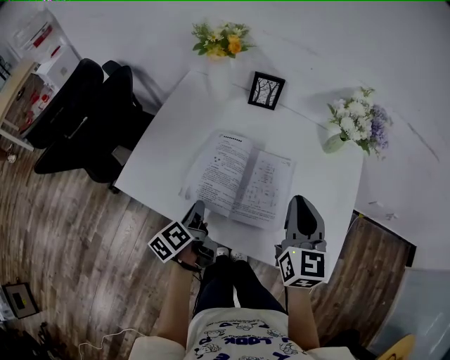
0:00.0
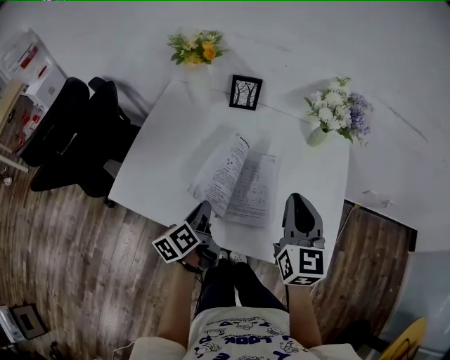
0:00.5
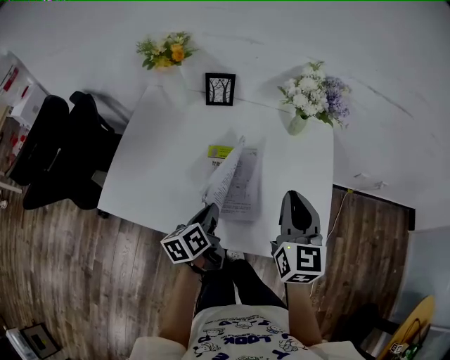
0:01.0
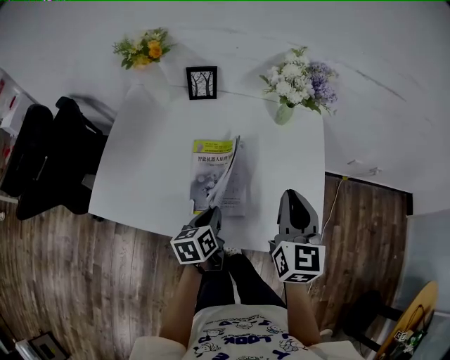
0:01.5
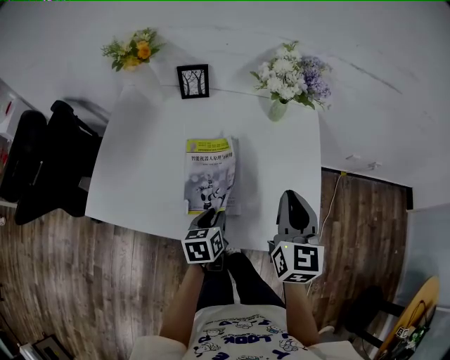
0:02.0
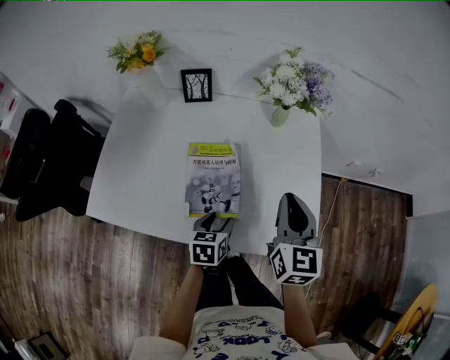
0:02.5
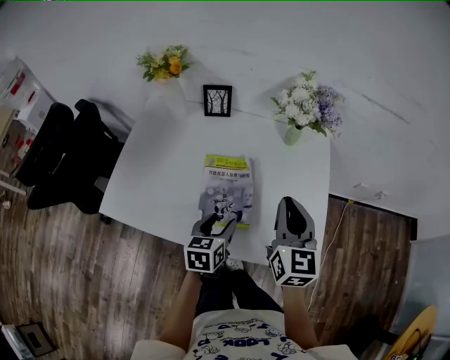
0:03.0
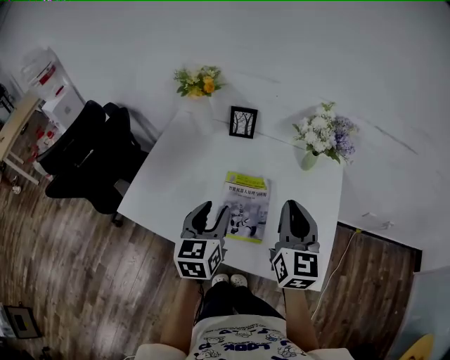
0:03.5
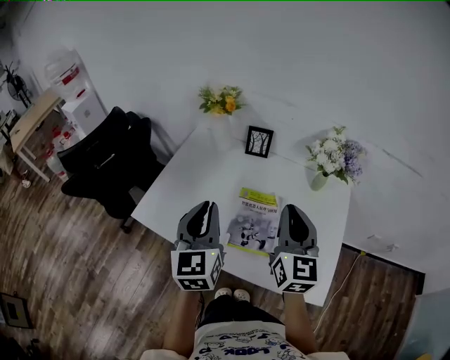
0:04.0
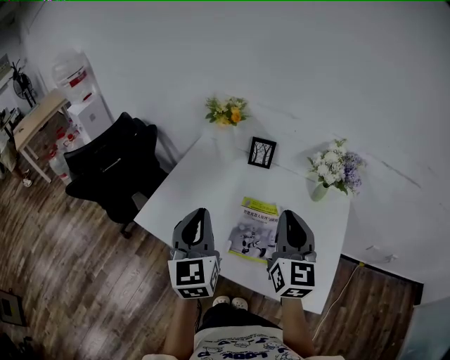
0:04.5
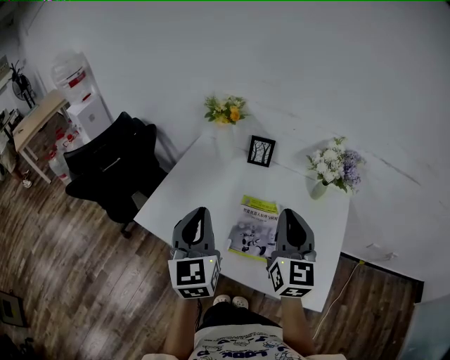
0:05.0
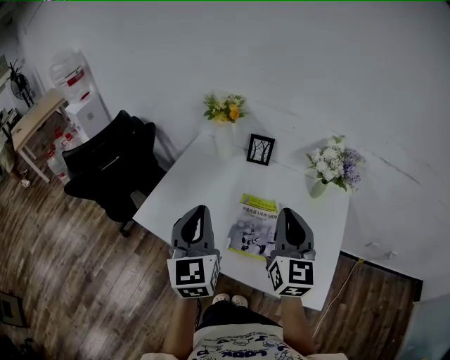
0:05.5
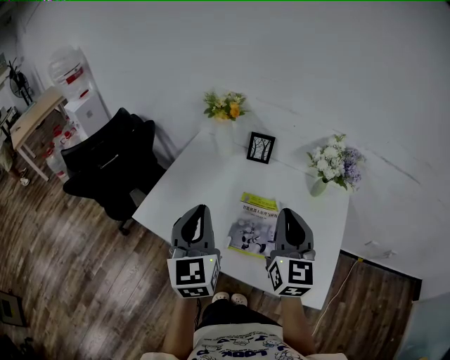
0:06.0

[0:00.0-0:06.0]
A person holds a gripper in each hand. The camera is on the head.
0:00.0 to 0:02.0: The right gripper goes approximately 15 cm to the right; the left gripper heads to the right, covering some 20 cm, and twists about 40 degrees clockwise, seen from behind.
0:02.0 to 0:04.0: The right gripper ends up about 15 cm from where it was, and rotates some 20 degrees. Meanwhile the left gripper heads upward, covering about 30 cm, tips its fingers upward by approximately 30 degrees, and opens and closes again.
0:04.0 to 0:06.0: The grippers make only small movements.

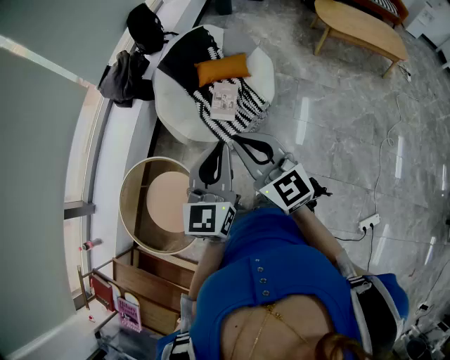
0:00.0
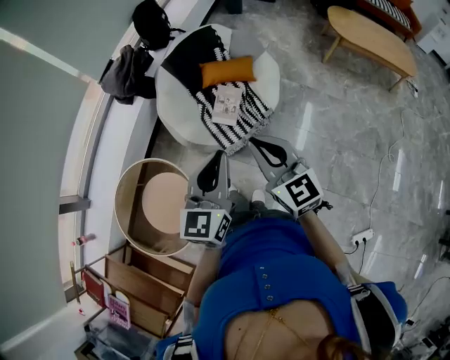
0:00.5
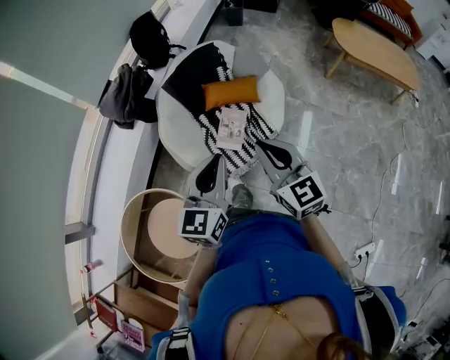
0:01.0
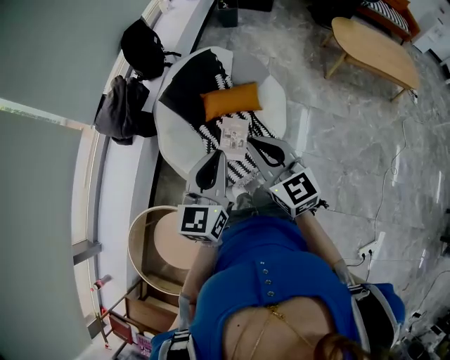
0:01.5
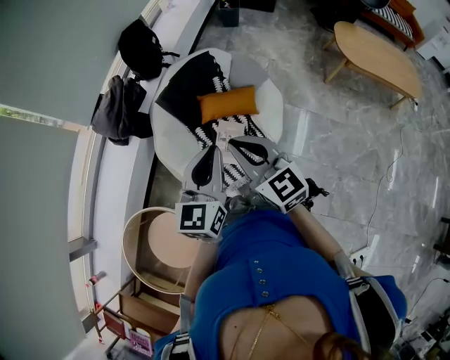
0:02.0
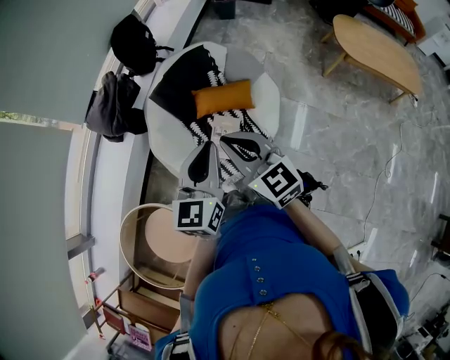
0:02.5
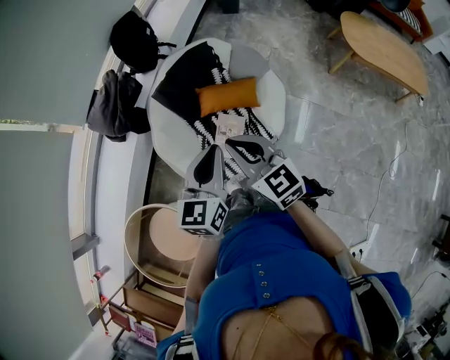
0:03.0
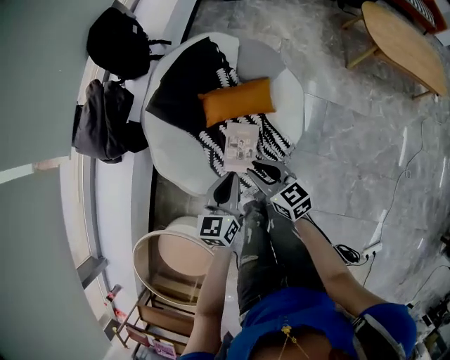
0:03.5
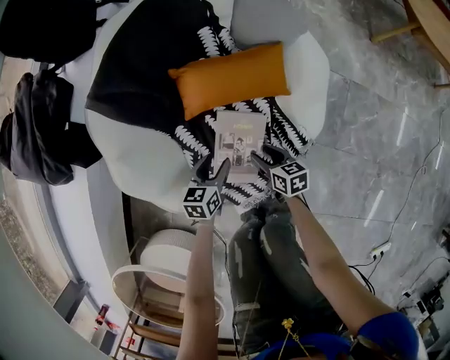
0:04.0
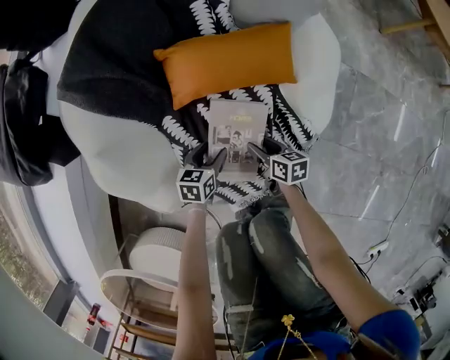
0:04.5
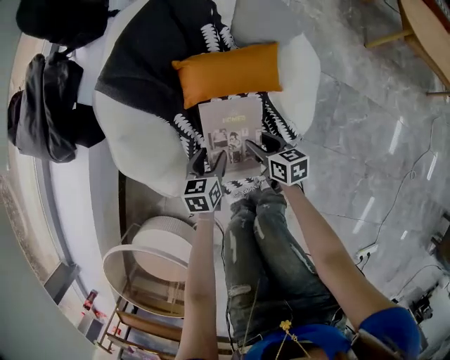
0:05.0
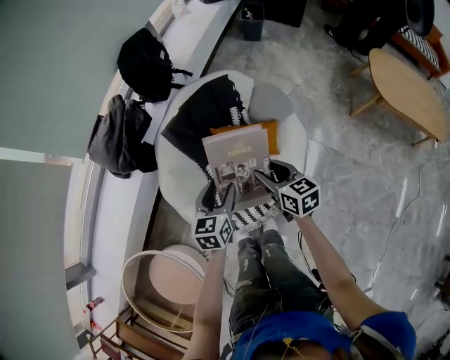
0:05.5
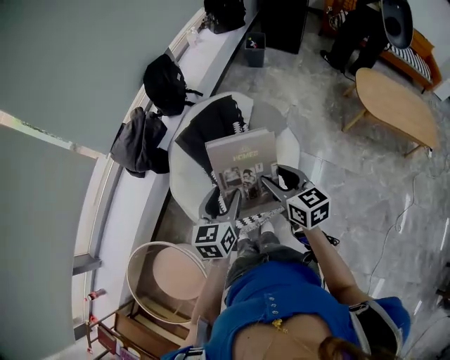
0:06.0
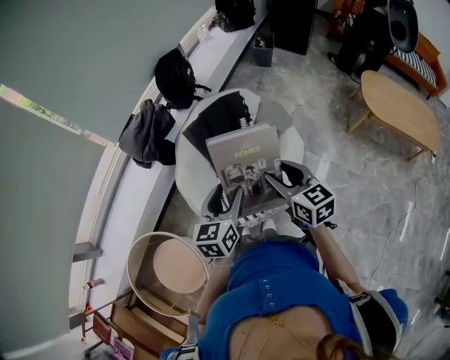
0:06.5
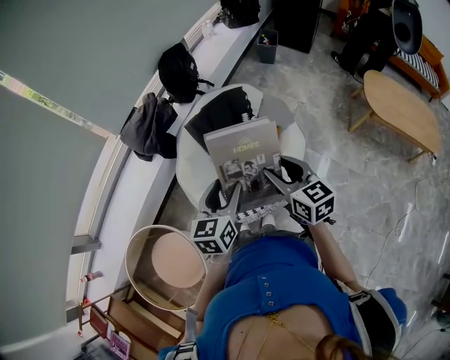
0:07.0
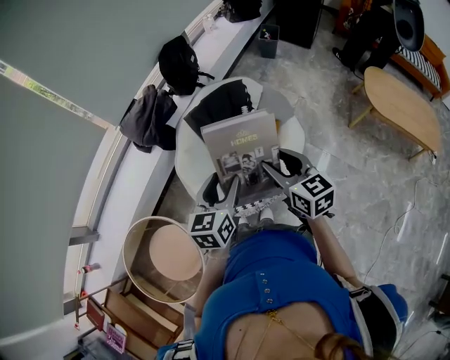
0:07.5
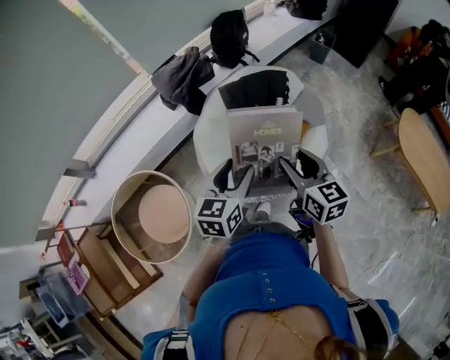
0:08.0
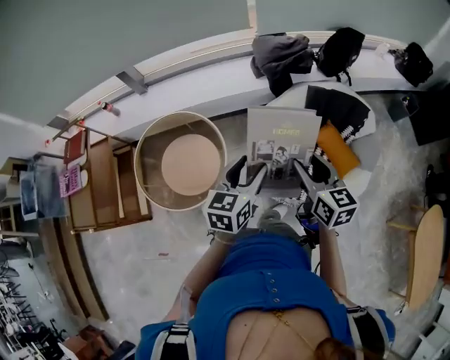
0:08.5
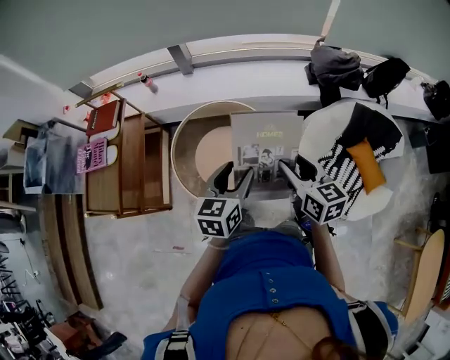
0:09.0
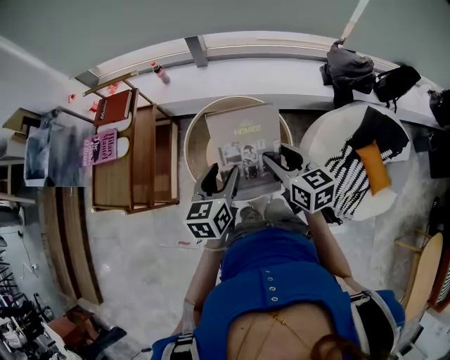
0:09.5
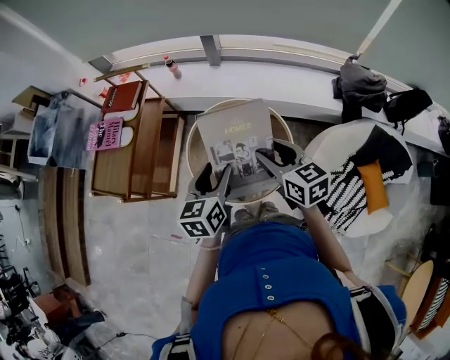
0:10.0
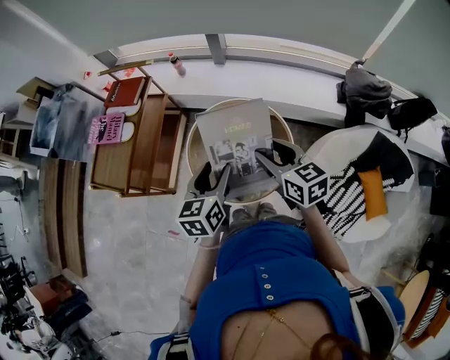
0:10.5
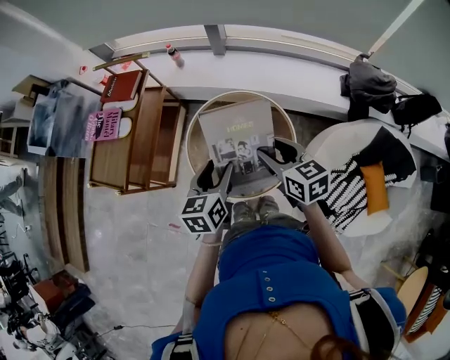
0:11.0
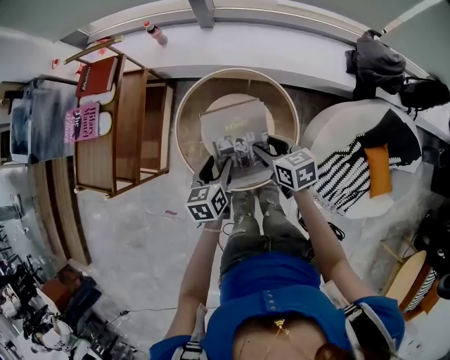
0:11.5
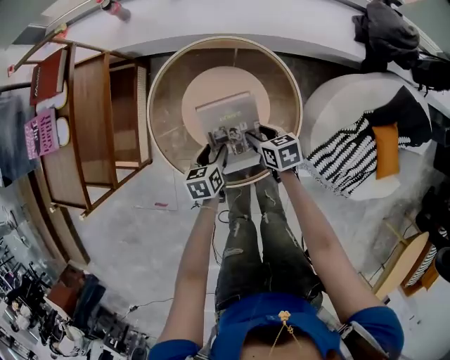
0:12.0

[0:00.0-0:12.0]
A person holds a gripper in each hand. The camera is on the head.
0:00.0 to 0:02.0: Both grippers travel together forward, roughly 35 cm.
0:02.0 to 0:04.0: The two grippers go some 80 cm downward. The left gripper angles its fingers downward, by some 30 degrees, and opens its fingers; the right gripper tips its fingers downward by roughly 30 degrees, and opens.
0:04.0 to 0:06.0: Both grippers move upward, about 70 cm. The right gripper swivels about 30 degrees. Meanwhile the left gripper rotates some 30 degrees.
0:06.0 to 0:08.0: The left gripper travels backward by roughly 10 cm; the right gripper shifts approximately 5 cm backward.
0:08.0 to 0:10.0: The two grippers travel together, approximately 70 cm. The right gripper turns by some 60 degrees. The left gripper swivels approximately 60 degrees.
0:10.0 to 0:12.0: The two grippers go some 40 cm downward. The left gripper swivels about 30 degrees; the right gripper rotates roughly 30 degrees.

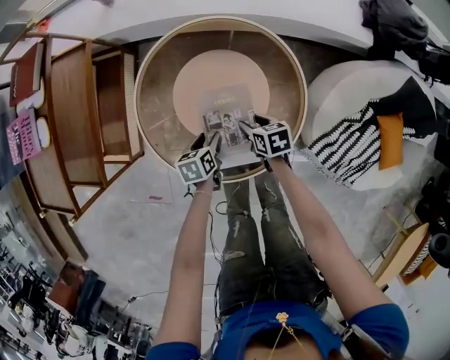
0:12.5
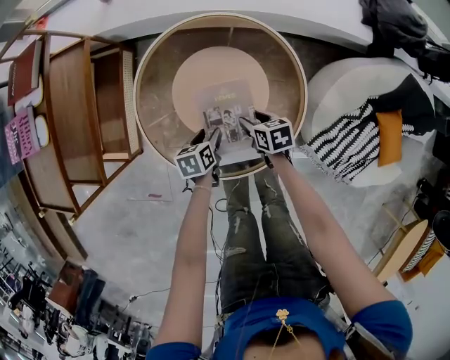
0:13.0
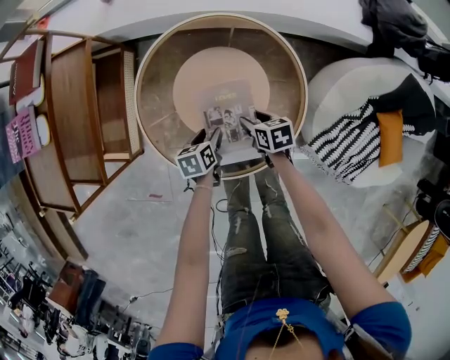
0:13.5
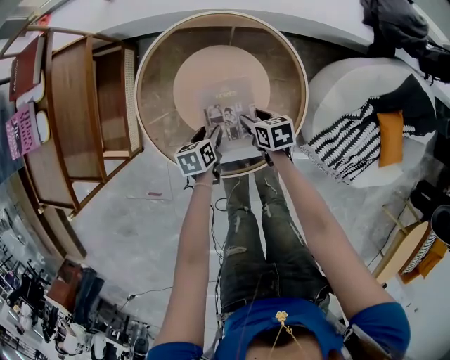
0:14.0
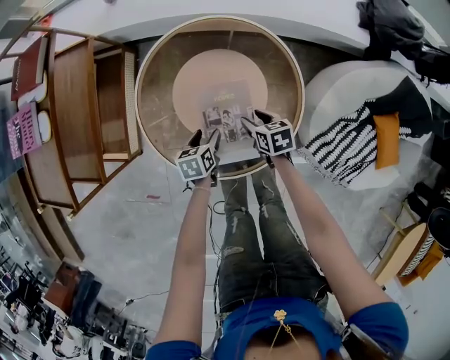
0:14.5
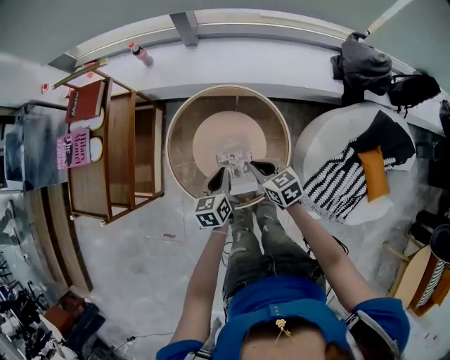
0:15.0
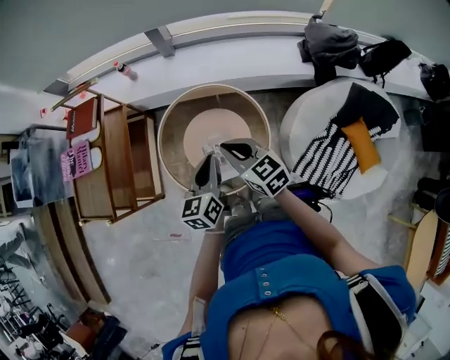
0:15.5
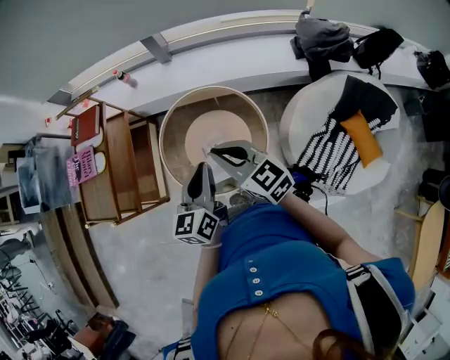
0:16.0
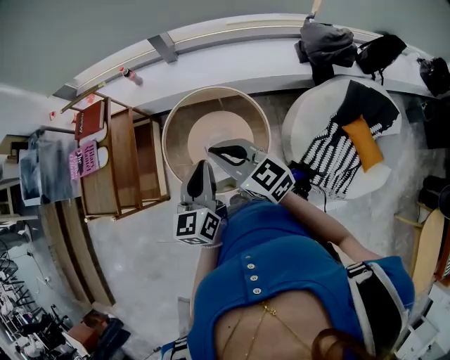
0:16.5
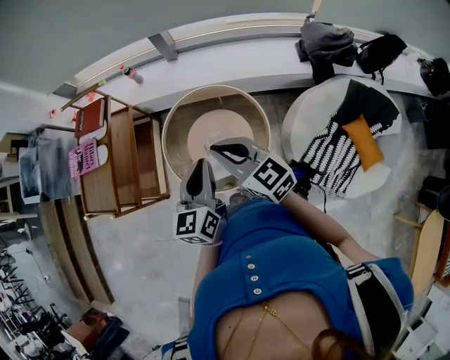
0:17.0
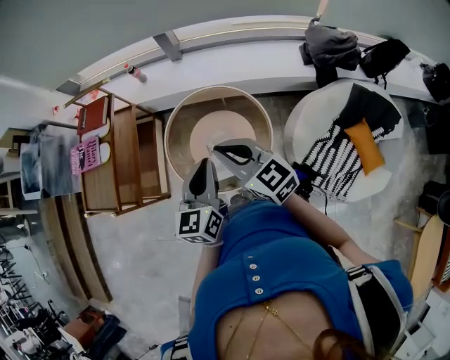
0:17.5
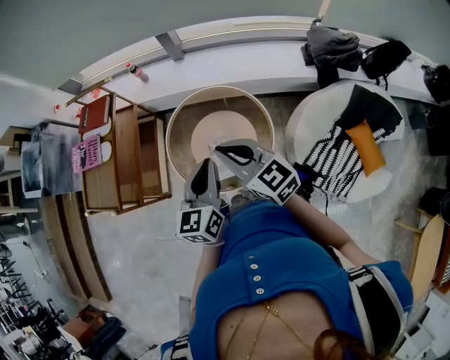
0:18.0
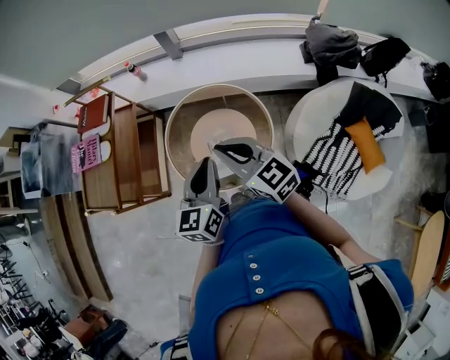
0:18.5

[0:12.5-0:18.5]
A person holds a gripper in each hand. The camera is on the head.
0:12.5 to 0:14.5: There are only small adjustments of the grippers.
0:14.5 to 0:16.5: Both grippers travel together upward, some 50 cm. The right gripper tips its fingers upward by some 40 degrees, and closes its fingers; the left gripper tips its fingers upward by some 40 degrees, and closes its fingers.
0:16.5 to 0:18.5: Neither gripper changes place.

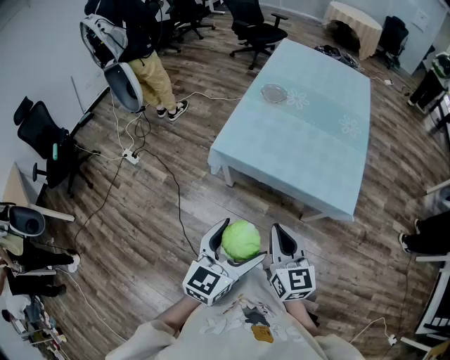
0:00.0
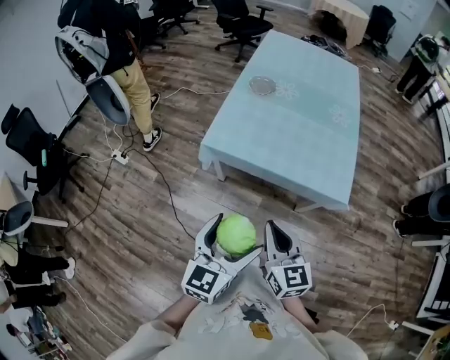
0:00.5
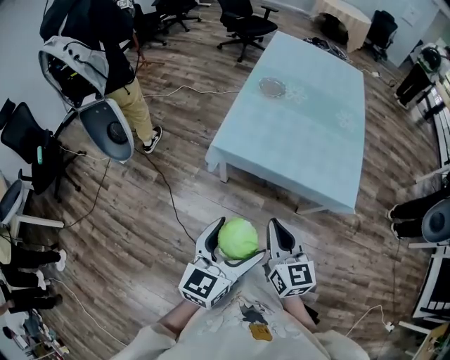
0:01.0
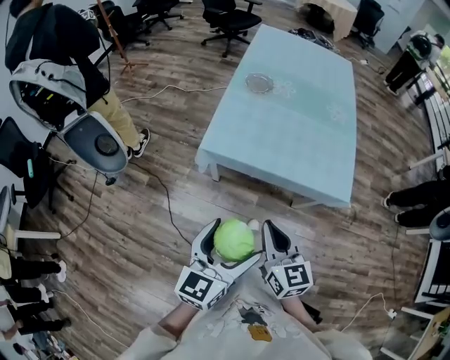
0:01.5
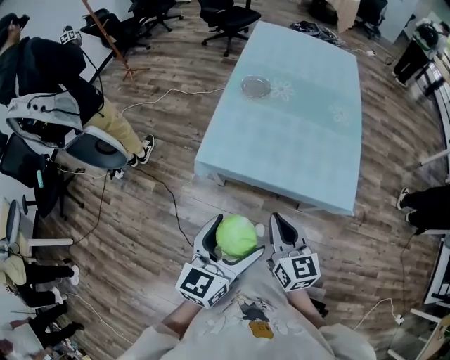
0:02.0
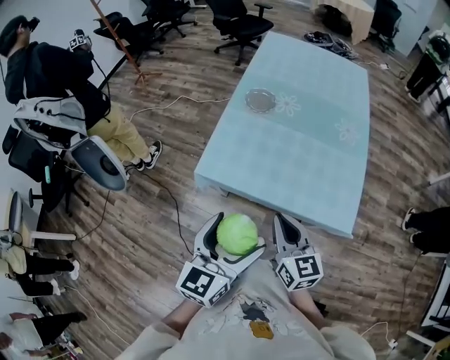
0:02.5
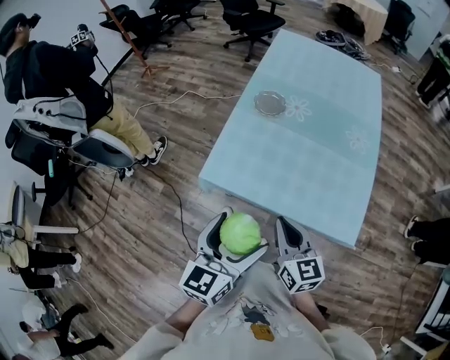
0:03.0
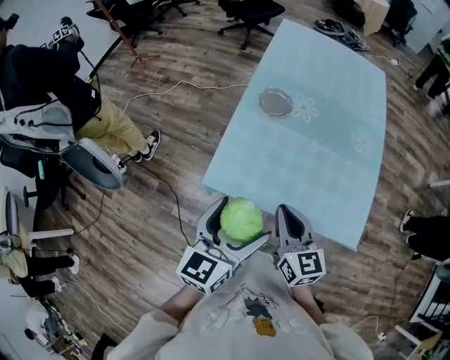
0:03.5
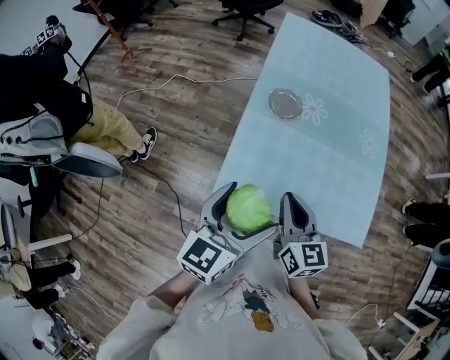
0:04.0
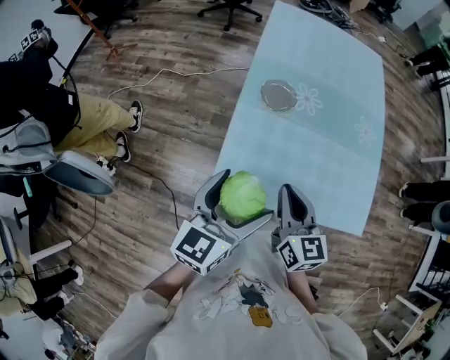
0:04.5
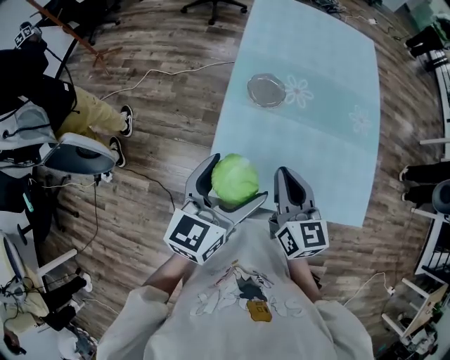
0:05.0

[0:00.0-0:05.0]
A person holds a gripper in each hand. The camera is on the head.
0:00.0 to 0:02.5: Both grippers travel together forward, approximately 20 cm.
0:02.5 to 0:05.0: Both grippers move forward and to the left, approximately 30 cm.
